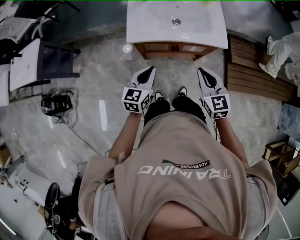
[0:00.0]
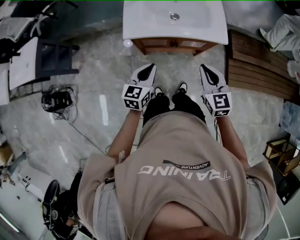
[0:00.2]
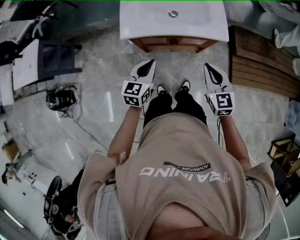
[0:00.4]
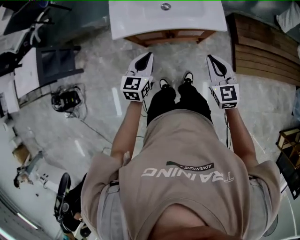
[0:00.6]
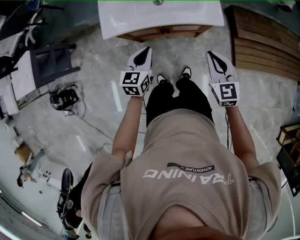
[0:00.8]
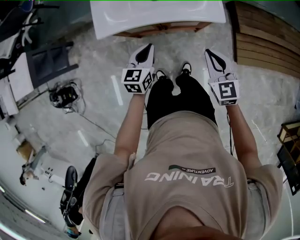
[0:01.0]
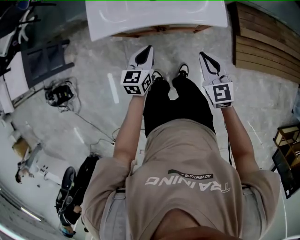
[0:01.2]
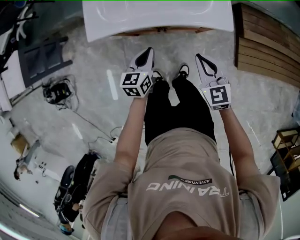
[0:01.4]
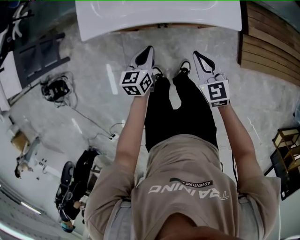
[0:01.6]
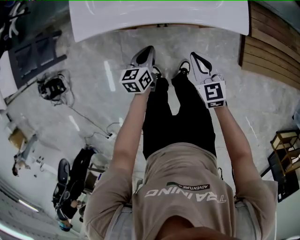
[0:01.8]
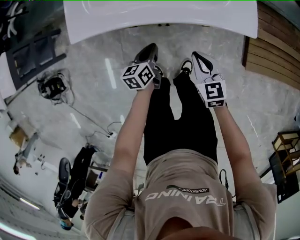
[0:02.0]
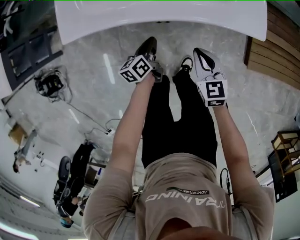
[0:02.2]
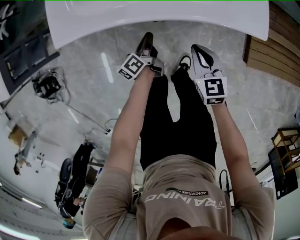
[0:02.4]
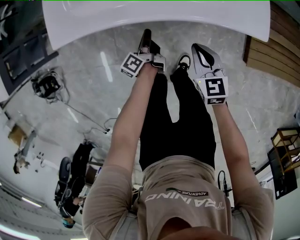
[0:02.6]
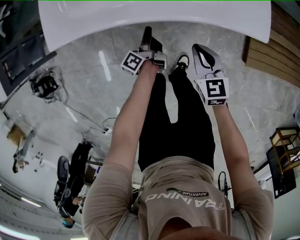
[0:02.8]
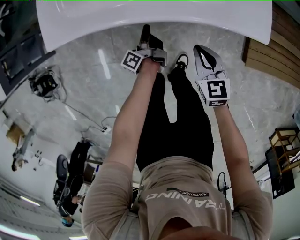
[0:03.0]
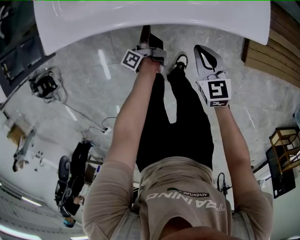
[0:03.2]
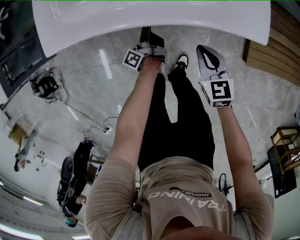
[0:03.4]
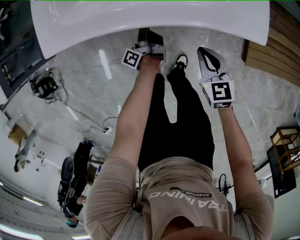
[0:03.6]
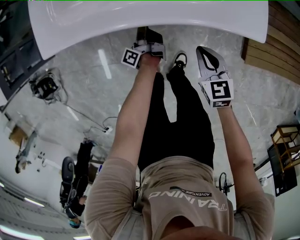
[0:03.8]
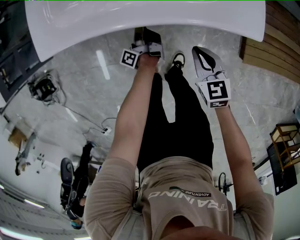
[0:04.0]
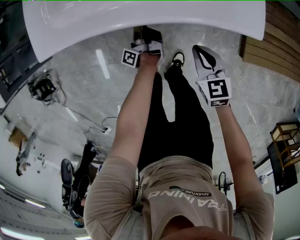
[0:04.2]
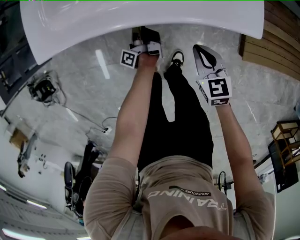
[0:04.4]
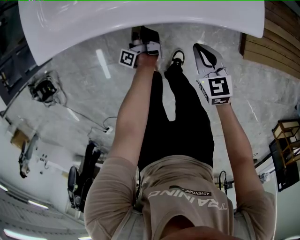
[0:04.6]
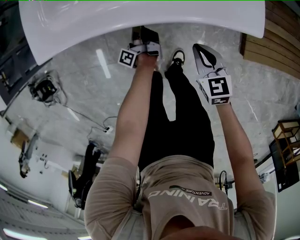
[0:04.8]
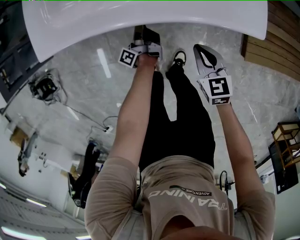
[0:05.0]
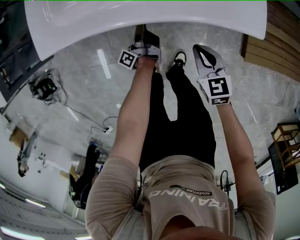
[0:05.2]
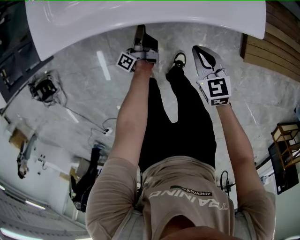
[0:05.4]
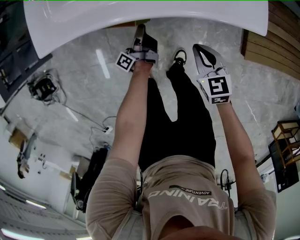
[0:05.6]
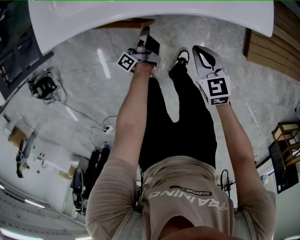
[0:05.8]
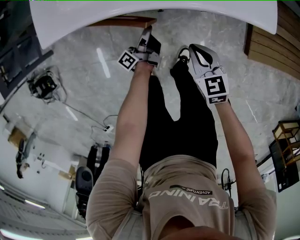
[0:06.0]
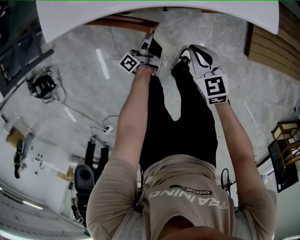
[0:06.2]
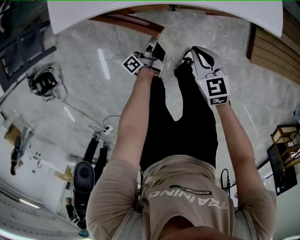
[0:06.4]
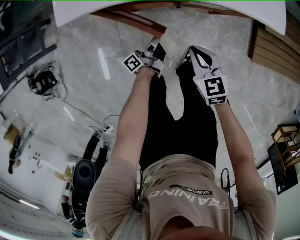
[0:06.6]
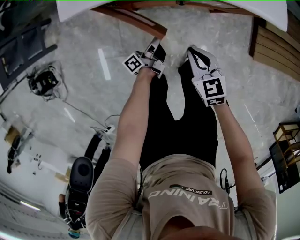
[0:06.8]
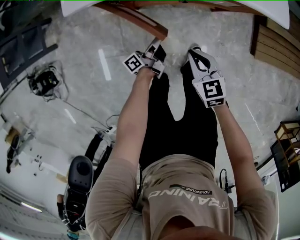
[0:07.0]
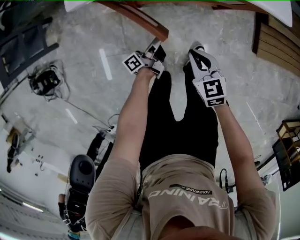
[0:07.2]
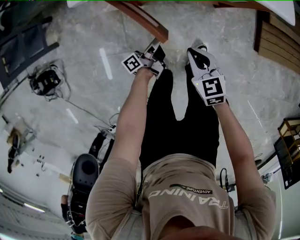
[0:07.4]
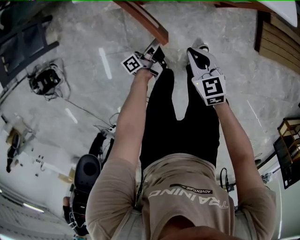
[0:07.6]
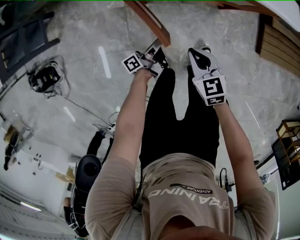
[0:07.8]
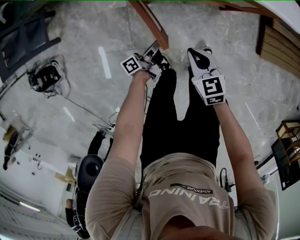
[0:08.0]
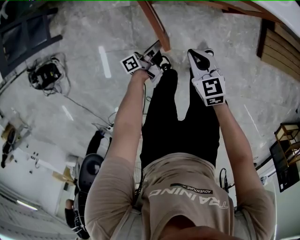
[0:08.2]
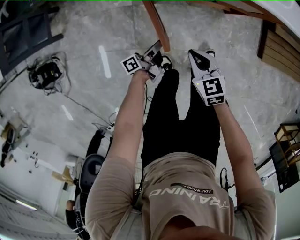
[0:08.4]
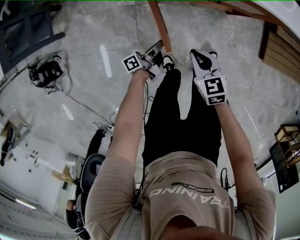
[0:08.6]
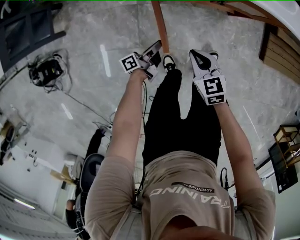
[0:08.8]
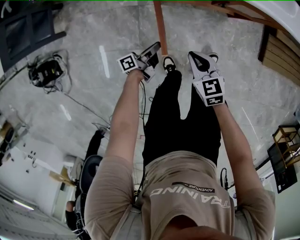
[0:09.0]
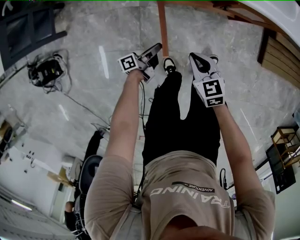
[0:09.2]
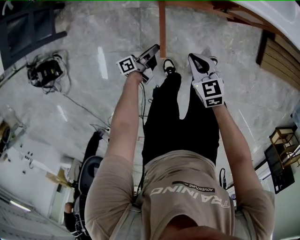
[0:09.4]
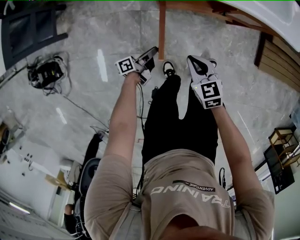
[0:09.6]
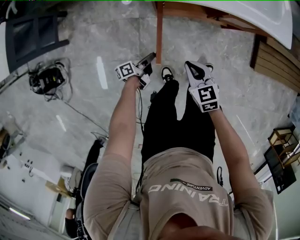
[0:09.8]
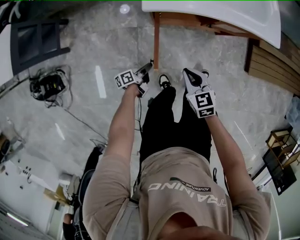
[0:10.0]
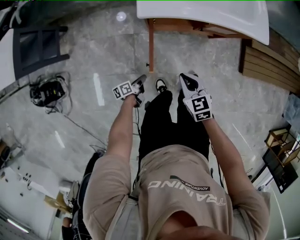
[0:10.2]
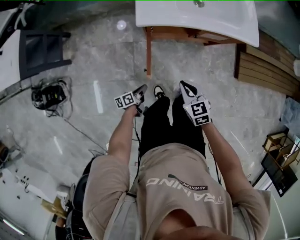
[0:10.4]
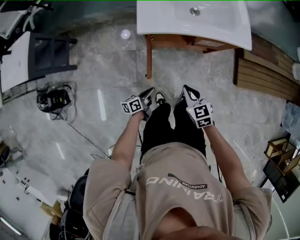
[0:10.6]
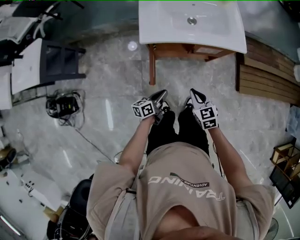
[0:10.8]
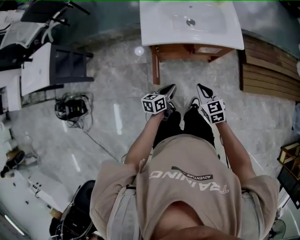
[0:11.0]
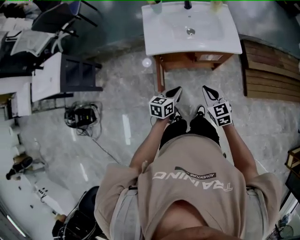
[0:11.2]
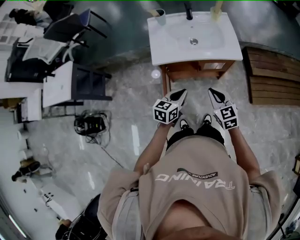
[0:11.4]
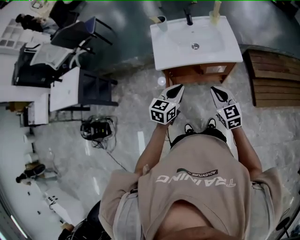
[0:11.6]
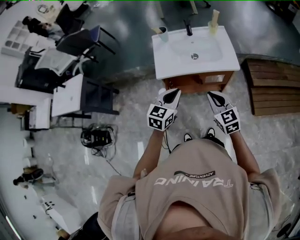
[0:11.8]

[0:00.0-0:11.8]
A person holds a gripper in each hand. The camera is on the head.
0.0 to 1.4 s: The two grippers go roughly 20 cm downward, to the right and forward.
1.4 to 3.0 s: Both grippers move downward, approximately 20 cm. The left gripper rotates around the line of its fingers by approximately 70 degrees, counterclockwise from behind.
3.0 to 4.4 s: There are only small adjustments of the grippers.
4.4 to 6.0 s: The right gripper travels to the left by about 5 cm, while the left gripper travels backward by approximately 5 cm, and rotates some 20 degrees.
6.0 to 7.4 s: The left gripper heads backward and to the left, covering approximately 15 cm. Meanwhile the right gripper moves to the left and backward, about 15 cm.
7.4 to 8.8 s: Both grippers move to the left, some 10 cm.
8.8 to 10.4 s: The left gripper is displaced backward and to the left by approximately 10 cm, and swivels approximately 30 degrees, while the right gripper shifts roughly 10 cm upward.
10.4 to 11.8 s: The left gripper shifts some 50 cm upward, and twists approximately 70 degrees clockwise, seen from behind. Meanwhile the right gripper moves upward and to the right, about 25 cm, and turns by about 20 degrees.

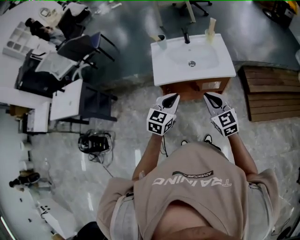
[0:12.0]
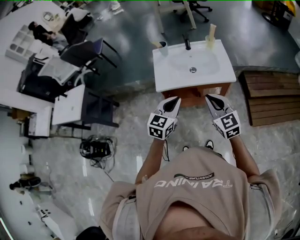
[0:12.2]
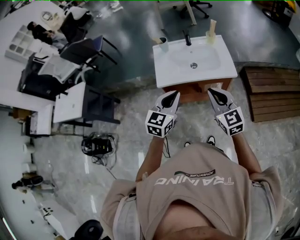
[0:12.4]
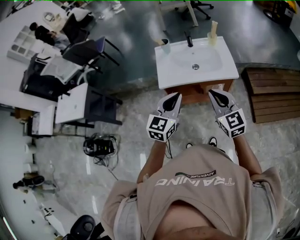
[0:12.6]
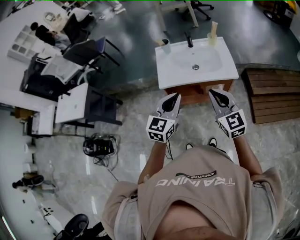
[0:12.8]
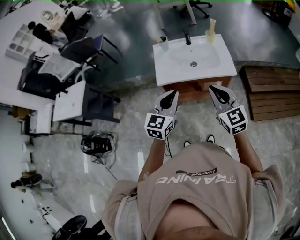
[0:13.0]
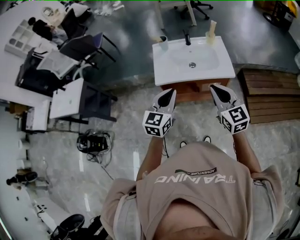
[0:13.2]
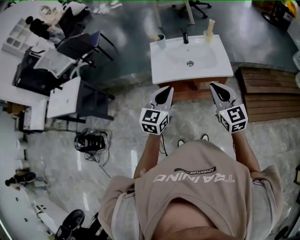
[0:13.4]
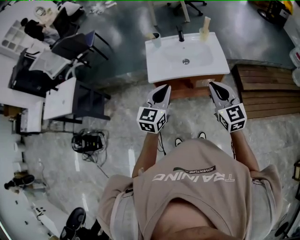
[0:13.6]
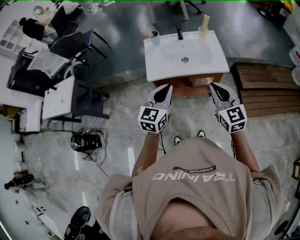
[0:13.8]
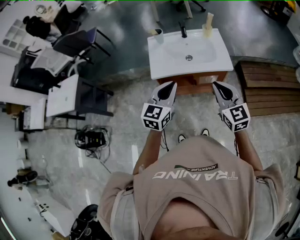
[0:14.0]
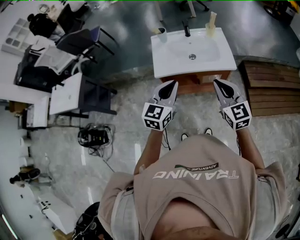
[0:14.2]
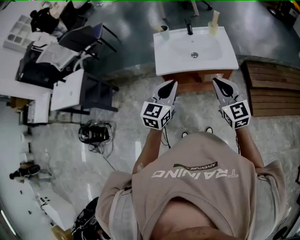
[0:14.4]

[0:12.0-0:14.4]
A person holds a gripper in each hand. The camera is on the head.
12.0 to 13.2 s: The grippers both shift upward by about 5 cm.
13.2 to 14.4 s: The grippers move only a little.

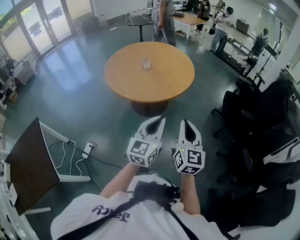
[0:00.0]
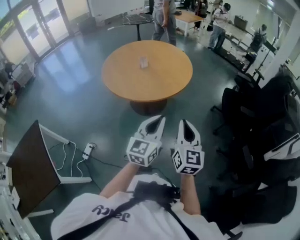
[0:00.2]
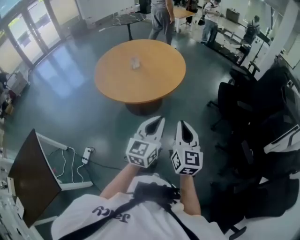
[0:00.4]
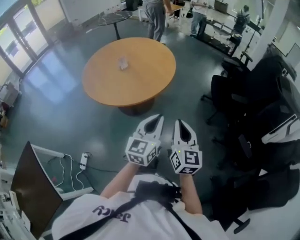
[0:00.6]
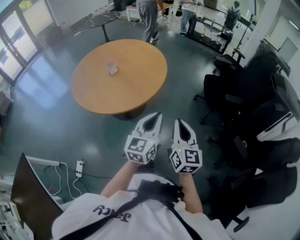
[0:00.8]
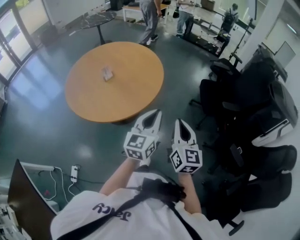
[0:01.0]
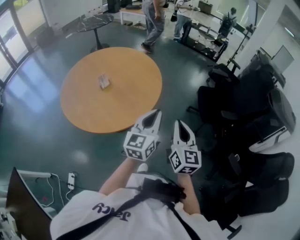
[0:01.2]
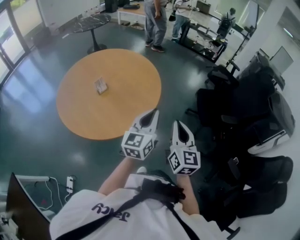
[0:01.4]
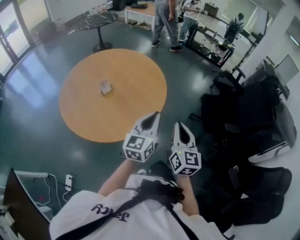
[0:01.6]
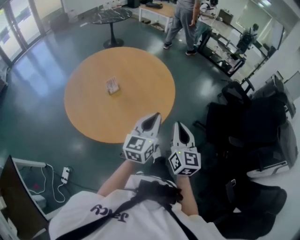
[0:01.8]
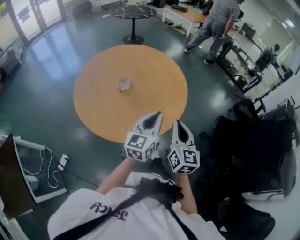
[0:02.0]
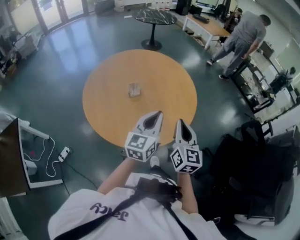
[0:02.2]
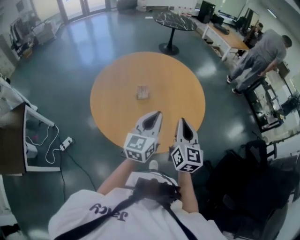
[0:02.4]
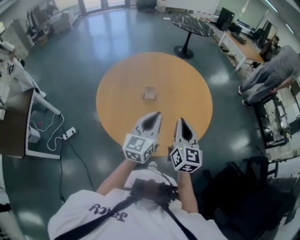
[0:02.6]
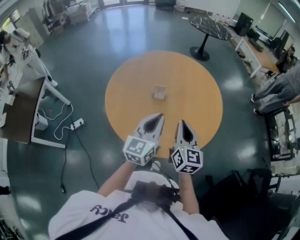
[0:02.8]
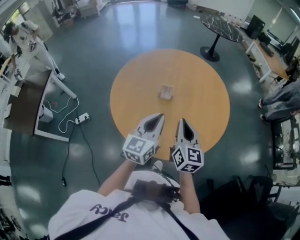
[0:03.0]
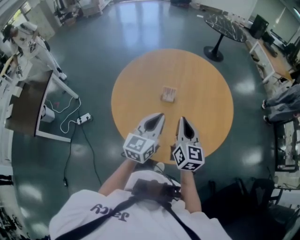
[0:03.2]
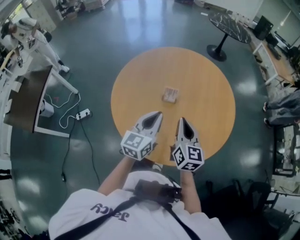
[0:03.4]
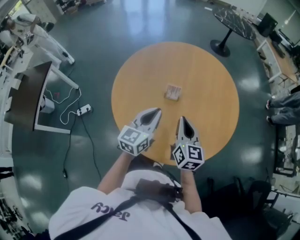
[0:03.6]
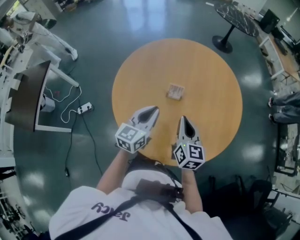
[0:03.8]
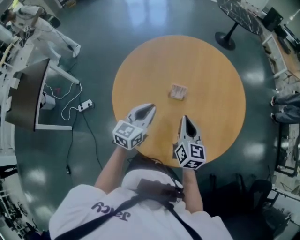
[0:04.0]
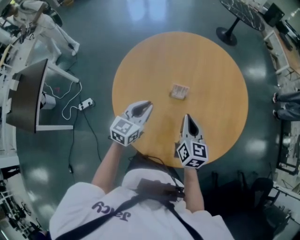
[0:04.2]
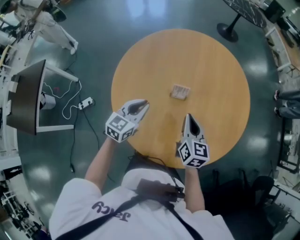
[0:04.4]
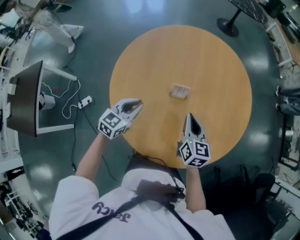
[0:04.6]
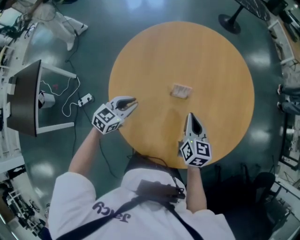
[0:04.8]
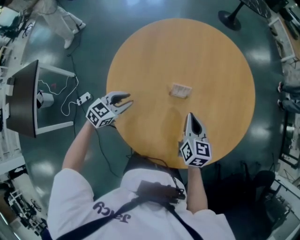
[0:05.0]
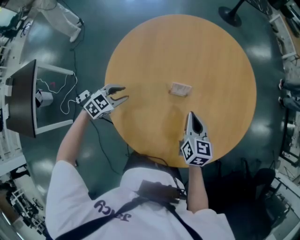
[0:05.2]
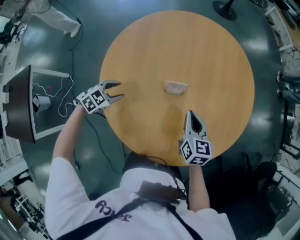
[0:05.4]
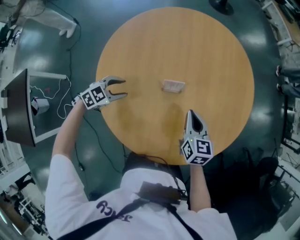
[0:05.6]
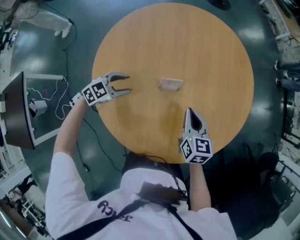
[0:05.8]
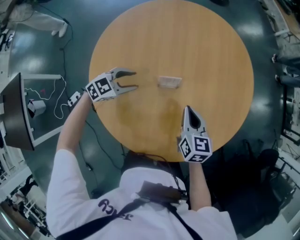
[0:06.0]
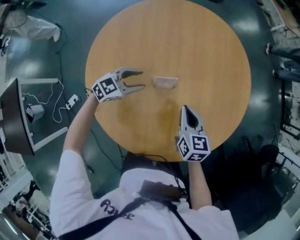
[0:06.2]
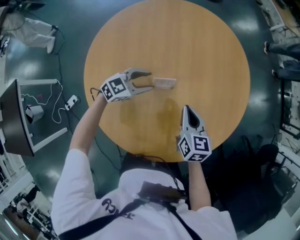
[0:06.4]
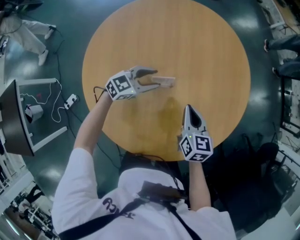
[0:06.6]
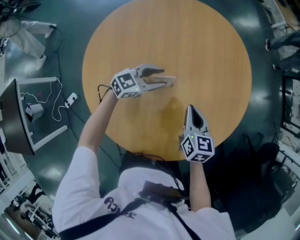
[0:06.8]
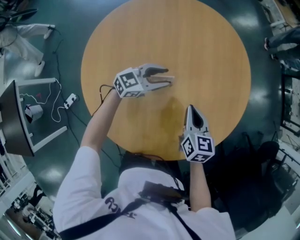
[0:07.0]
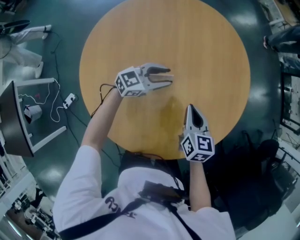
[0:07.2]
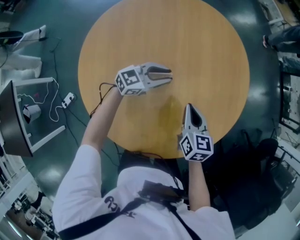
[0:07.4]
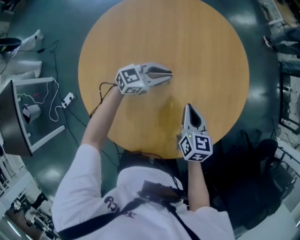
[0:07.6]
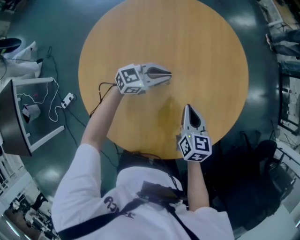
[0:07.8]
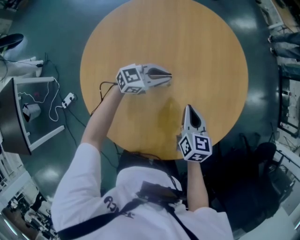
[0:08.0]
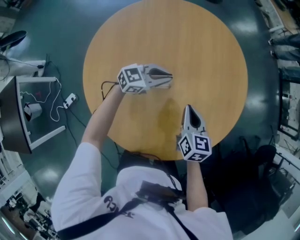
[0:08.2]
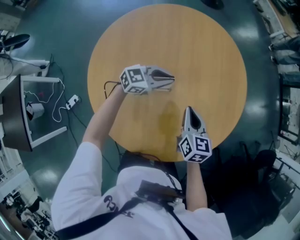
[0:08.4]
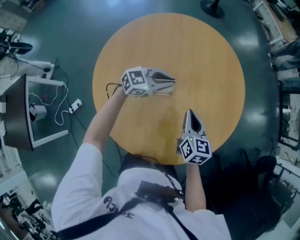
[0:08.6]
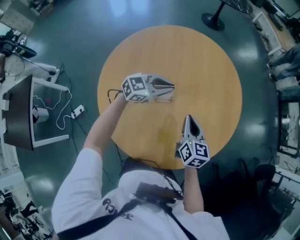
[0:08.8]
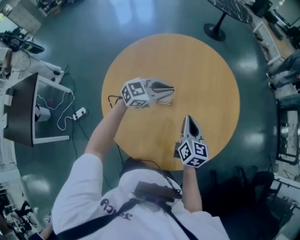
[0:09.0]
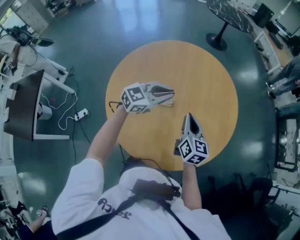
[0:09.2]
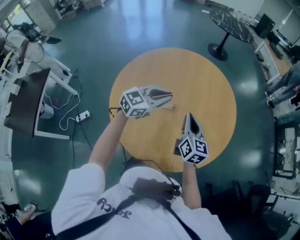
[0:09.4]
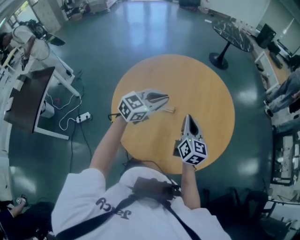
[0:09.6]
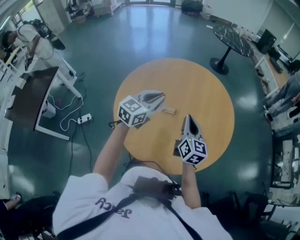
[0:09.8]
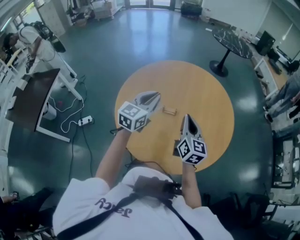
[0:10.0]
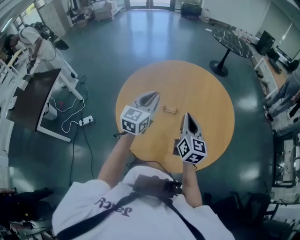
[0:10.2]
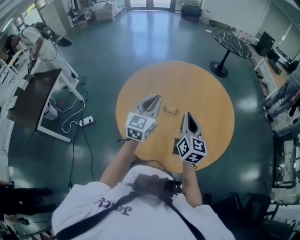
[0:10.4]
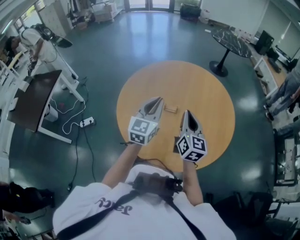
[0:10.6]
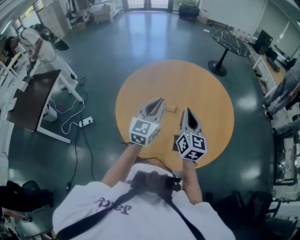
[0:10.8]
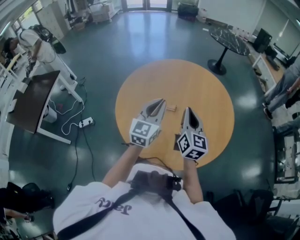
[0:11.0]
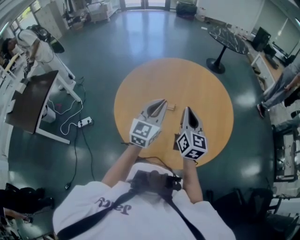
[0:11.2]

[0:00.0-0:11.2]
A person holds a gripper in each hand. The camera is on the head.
0.0 to 1.6 s: The grippers both shift forward by some 30 cm.
1.6 to 3.2 s: The left gripper moves approximately 25 cm, and changes its angle by some 50 degrees. The right gripper ends up about 30 cm from where it was, and changes its angle by some 60 degrees.
3.2 to 4.8 s: The left gripper heads to the left, downward and forward, covering about 25 cm, and swivels about 40 degrees. The right gripper travels downward and forward by about 15 cm.
4.8 to 6.4 s: The left gripper heads forward and to the right, covering about 15 cm, swivels about 30 degrees, and opens.
6.4 to 8.0 s: The left gripper shifts roughly 10 cm to the right and forward, and closes.
8.0 to 9.6 s: The left gripper travels upward and backward by roughly 20 cm, and turns by some 30 degrees; the right gripper shifts about 10 cm upward, and swivels roughly 30 degrees.
9.6 to 11.2 s: The left gripper goes approximately 5 cm backward, and rotates roughly 30 degrees. Meanwhile the right gripper moves about 5 cm.
